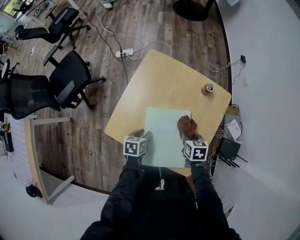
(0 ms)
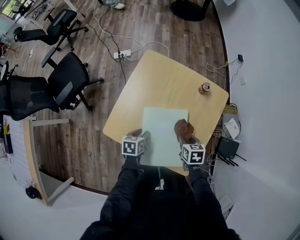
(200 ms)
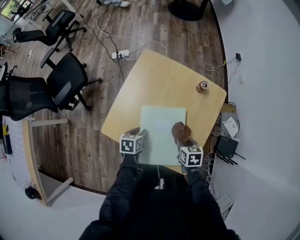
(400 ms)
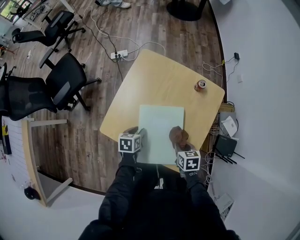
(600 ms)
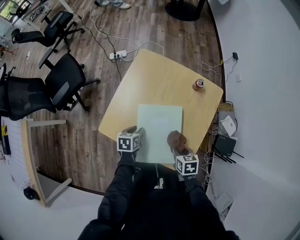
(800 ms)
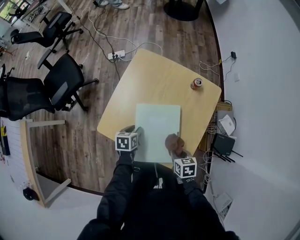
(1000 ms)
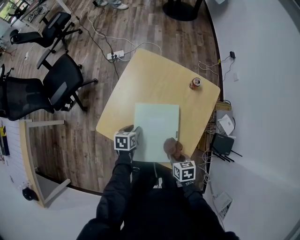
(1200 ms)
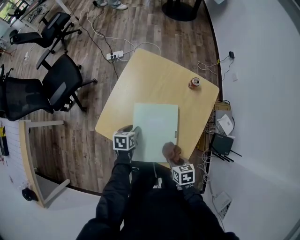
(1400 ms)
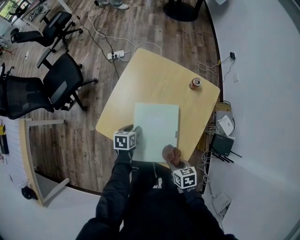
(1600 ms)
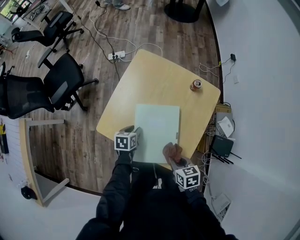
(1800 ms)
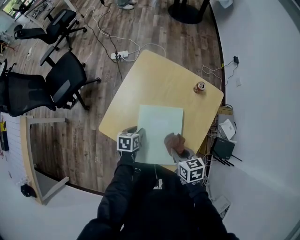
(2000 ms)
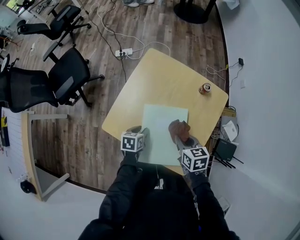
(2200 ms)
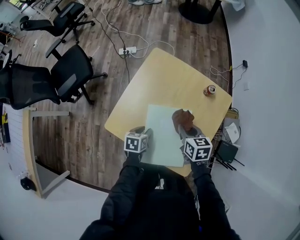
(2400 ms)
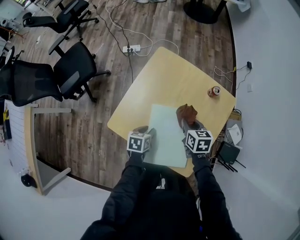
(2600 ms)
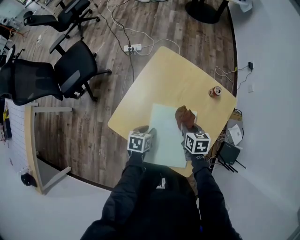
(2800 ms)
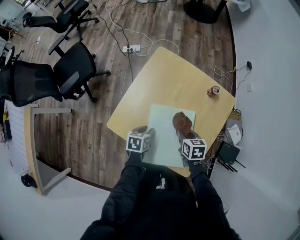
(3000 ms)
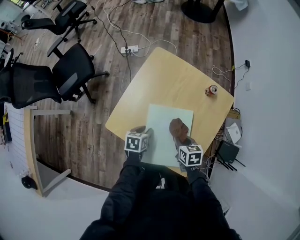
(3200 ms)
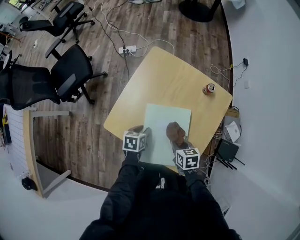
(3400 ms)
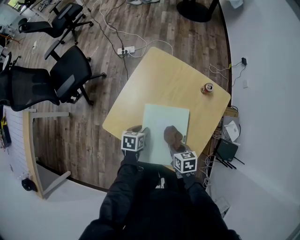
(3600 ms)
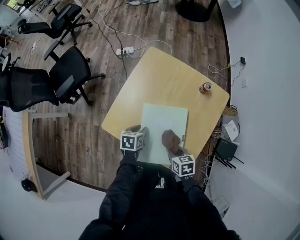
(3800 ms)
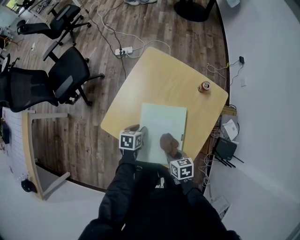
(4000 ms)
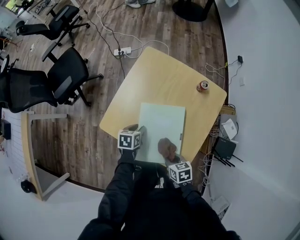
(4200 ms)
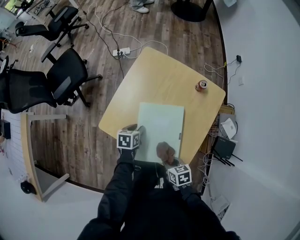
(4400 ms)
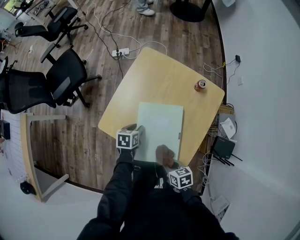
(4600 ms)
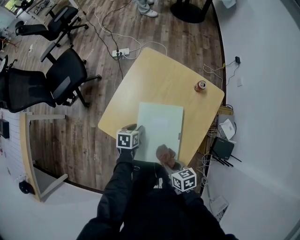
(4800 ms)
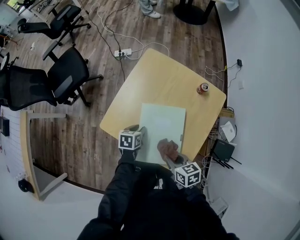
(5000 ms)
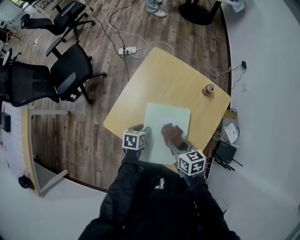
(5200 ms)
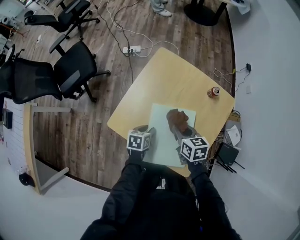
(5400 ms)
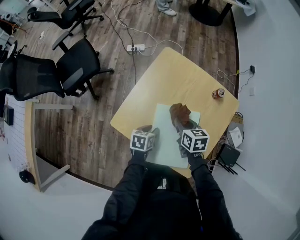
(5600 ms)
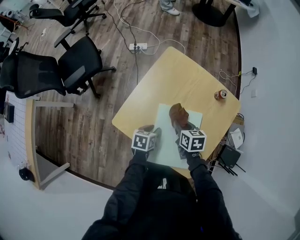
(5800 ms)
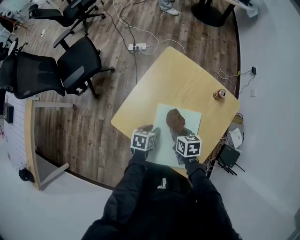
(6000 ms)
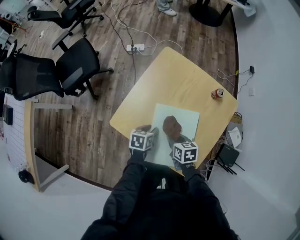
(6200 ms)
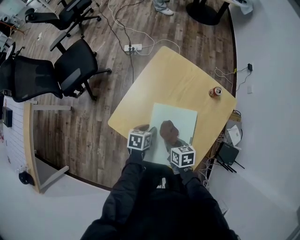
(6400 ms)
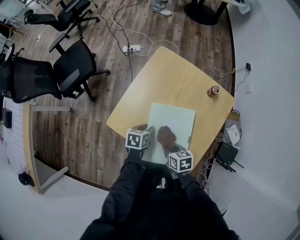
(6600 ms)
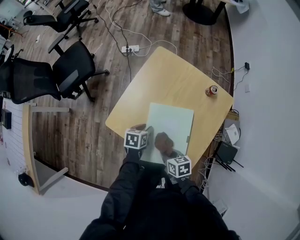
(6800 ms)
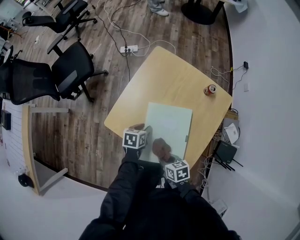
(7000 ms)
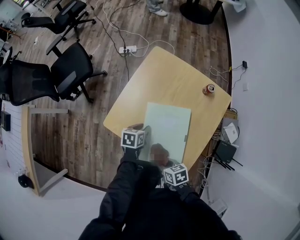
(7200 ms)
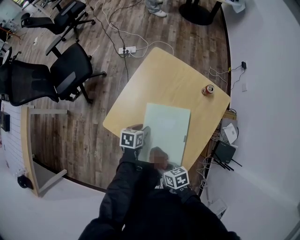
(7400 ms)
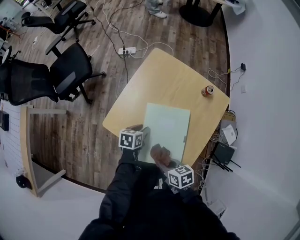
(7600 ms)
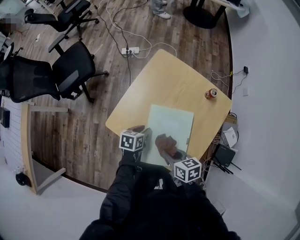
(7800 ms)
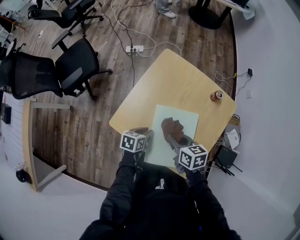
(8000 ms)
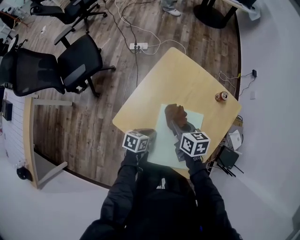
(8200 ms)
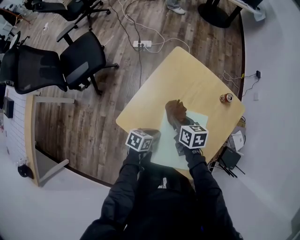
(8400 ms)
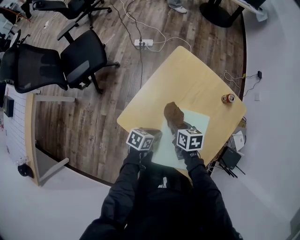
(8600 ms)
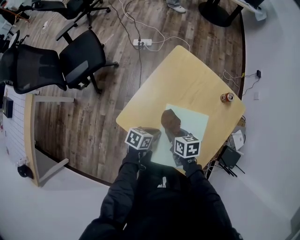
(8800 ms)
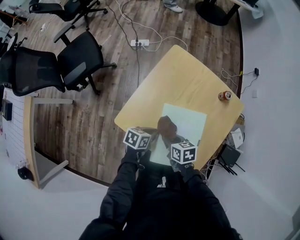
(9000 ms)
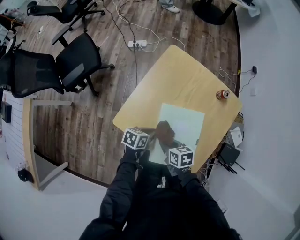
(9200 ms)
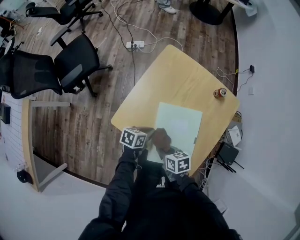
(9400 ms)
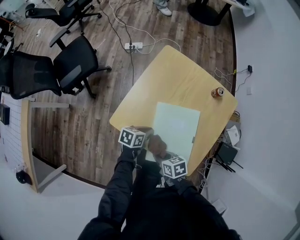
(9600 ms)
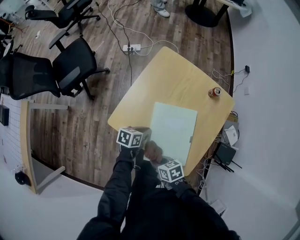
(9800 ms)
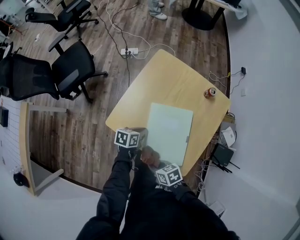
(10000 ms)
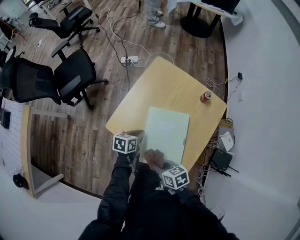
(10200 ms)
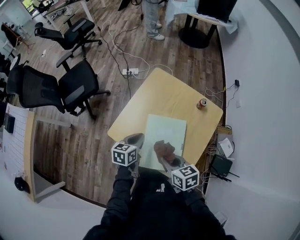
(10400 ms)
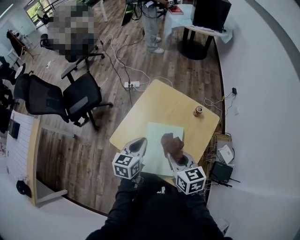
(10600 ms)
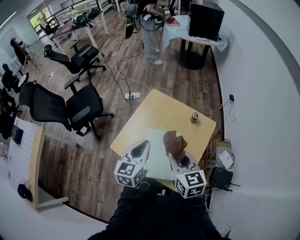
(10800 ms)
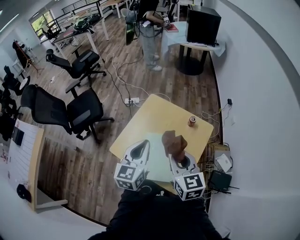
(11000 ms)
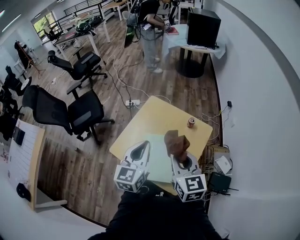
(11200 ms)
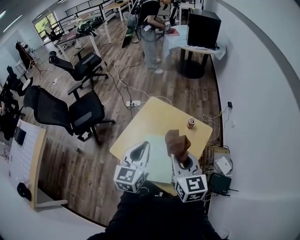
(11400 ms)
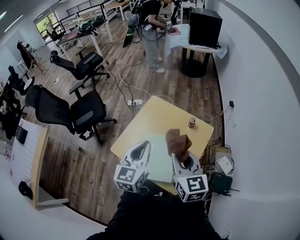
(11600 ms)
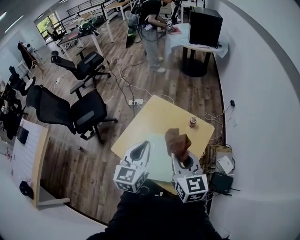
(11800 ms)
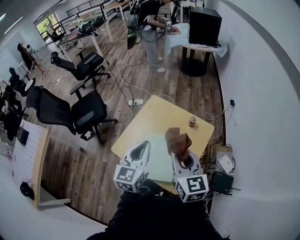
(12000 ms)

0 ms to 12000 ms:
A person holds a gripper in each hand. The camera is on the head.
0 ms to 1600 ms: The right gripper travels backward by approximately 20 cm.
1600 ms to 3000 ms: The right gripper heads forward, covering about 20 cm.
3000 ms to 4400 ms: The right gripper moves backward, about 20 cm.
4400 ms to 6000 ms: The right gripper is displaced forward by roughly 20 cm.
6000 ms to 7600 ms: The right gripper is displaced backward by approximately 15 cm.
7600 ms to 9000 ms: The left gripper closes. The right gripper is displaced forward and to the left by roughly 15 cm.
9000 ms to 10400 ms: Both grippers move upward, roughly 15 cm. The left gripper turns by about 30 degrees.
10400 ms to 12000 ms: The right gripper shifts about 25 cm upward and to the right, and rotates some 40 degrees; the left gripper moves upward, some 25 cm, and swivels some 40 degrees.

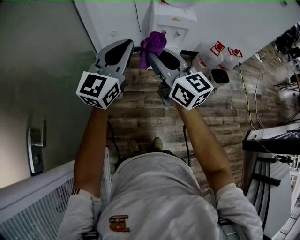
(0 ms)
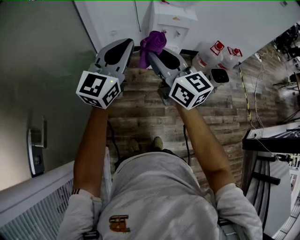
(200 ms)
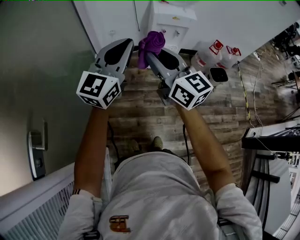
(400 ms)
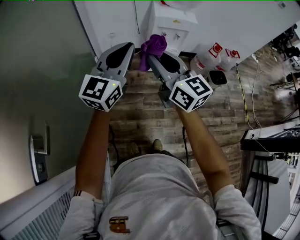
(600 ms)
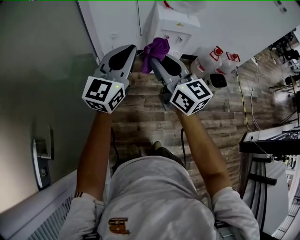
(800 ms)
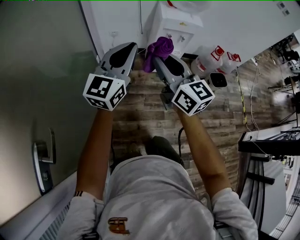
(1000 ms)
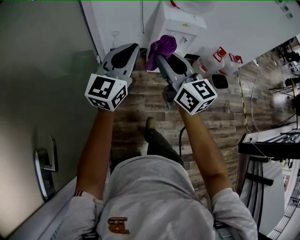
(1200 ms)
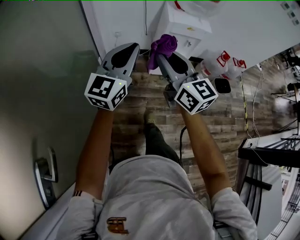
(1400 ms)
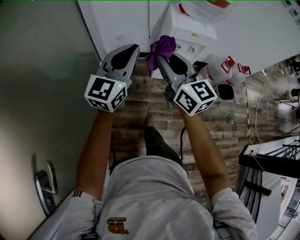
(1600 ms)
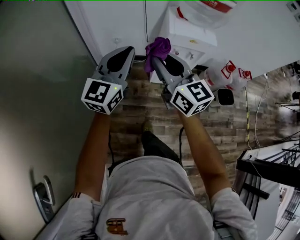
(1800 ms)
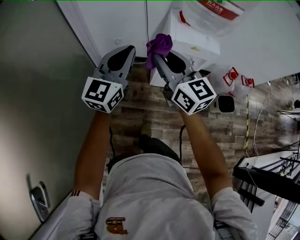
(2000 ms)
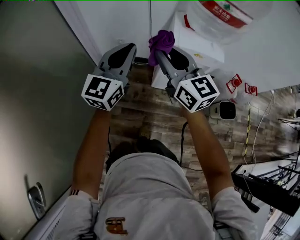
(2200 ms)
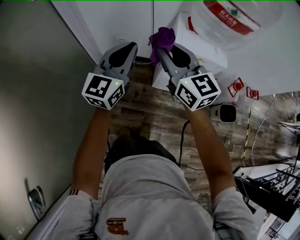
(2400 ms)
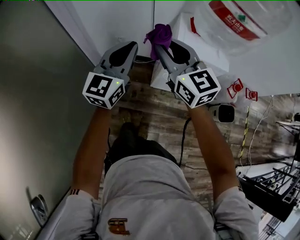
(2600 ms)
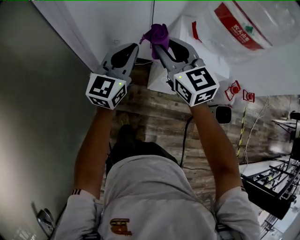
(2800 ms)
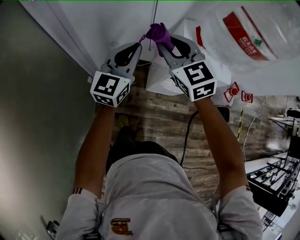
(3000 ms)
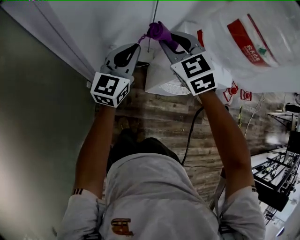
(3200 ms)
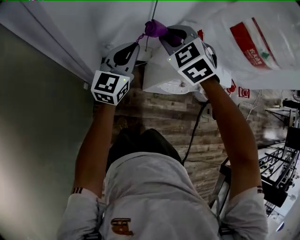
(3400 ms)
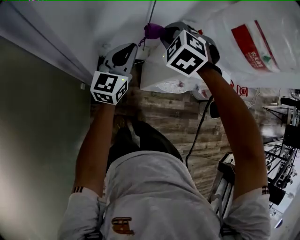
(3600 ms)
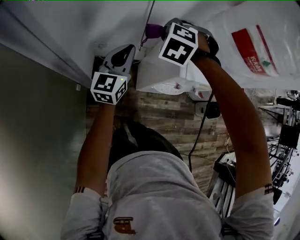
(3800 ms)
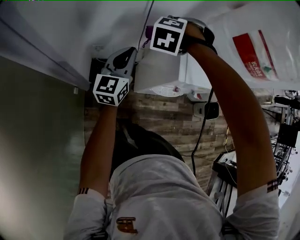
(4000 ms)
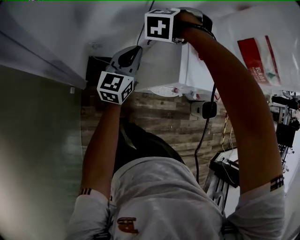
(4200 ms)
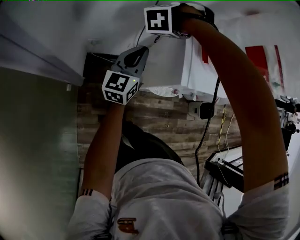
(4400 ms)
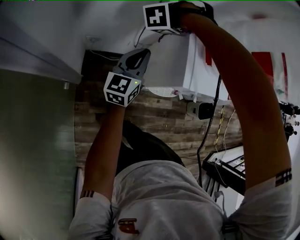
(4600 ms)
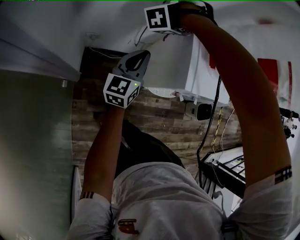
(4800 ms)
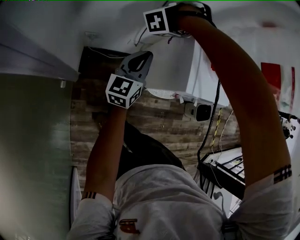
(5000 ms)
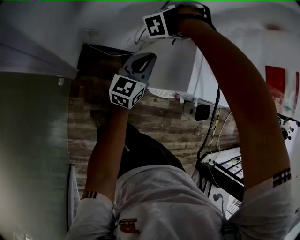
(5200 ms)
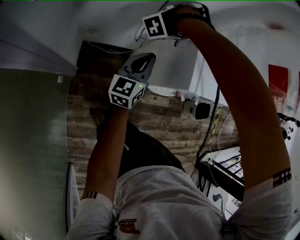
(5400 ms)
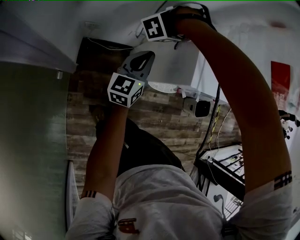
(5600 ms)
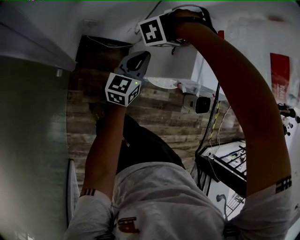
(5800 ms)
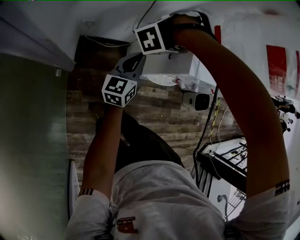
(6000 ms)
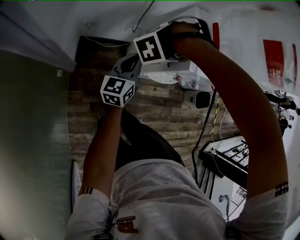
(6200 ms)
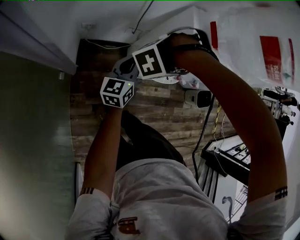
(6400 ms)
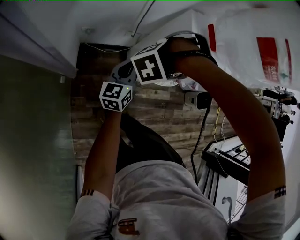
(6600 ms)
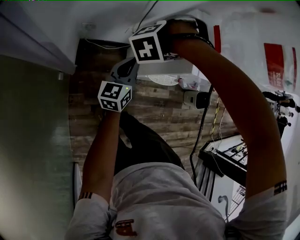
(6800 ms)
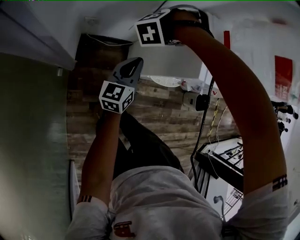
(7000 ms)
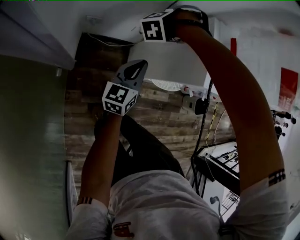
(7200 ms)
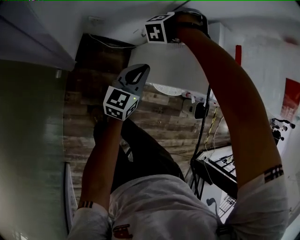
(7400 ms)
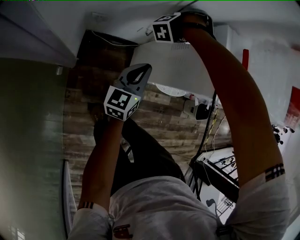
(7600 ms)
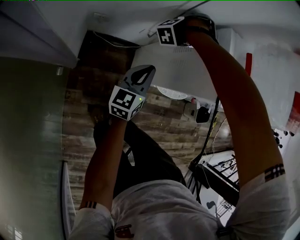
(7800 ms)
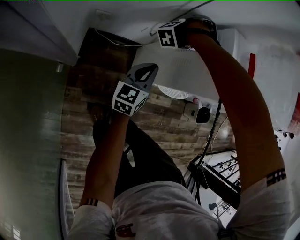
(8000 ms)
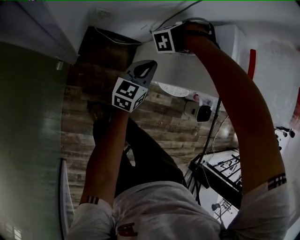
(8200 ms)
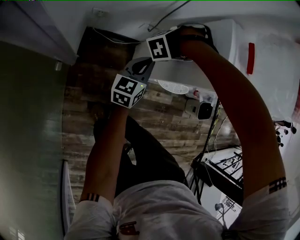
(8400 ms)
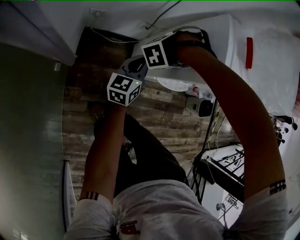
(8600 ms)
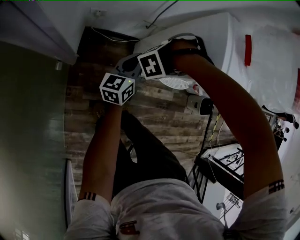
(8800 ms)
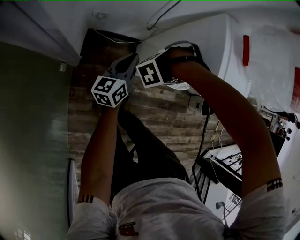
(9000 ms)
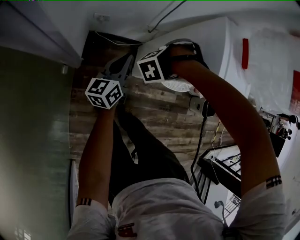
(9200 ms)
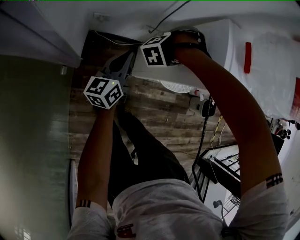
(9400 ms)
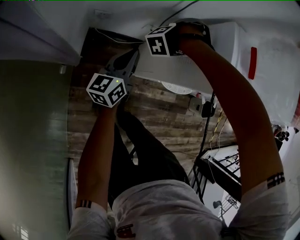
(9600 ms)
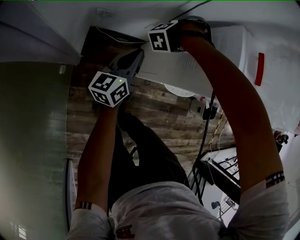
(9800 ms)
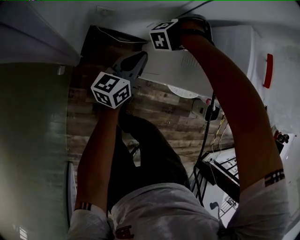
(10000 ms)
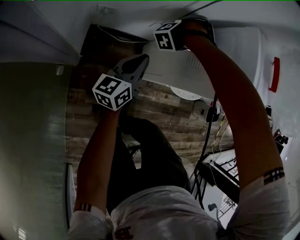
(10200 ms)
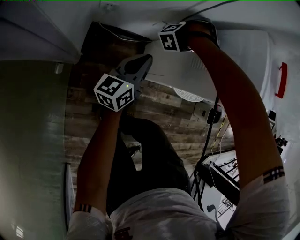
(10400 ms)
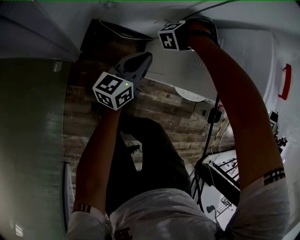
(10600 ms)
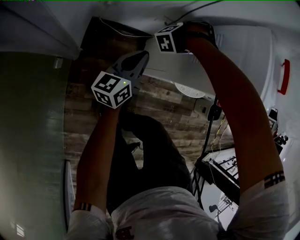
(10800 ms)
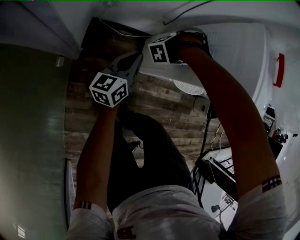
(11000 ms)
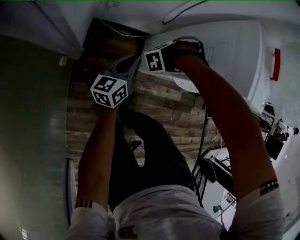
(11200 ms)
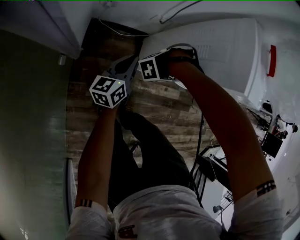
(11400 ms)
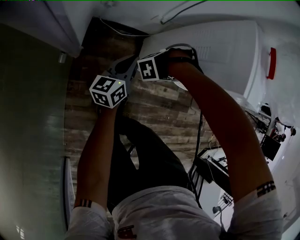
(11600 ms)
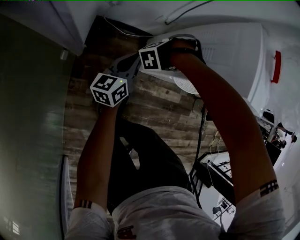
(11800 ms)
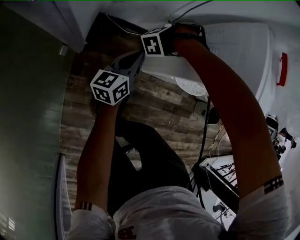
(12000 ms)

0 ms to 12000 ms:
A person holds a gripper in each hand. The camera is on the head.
0 ms to 1600 ms: The left gripper shifts by about 20 cm.
1600 ms to 3000 ms: The left gripper changes place by approximately 35 cm.
3000 ms to 4400 ms: The left gripper heads downward, covering approximately 10 cm.
4400 ms to 6000 ms: The left gripper heads downward, covering about 10 cm.
6000 ms to 7600 ms: The left gripper is displaced downward by roughly 5 cm.
7600 ms to 9000 ms: The left gripper ends up about 5 cm from where it was.
9000 ms to 10400 ms: The left gripper shifts about 5 cm downward.
10400 ms to 12000 ms: The left gripper ends up approximately 5 cm from where it was.
